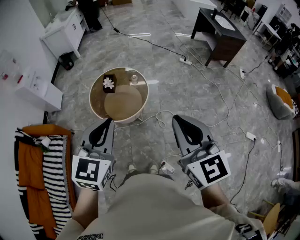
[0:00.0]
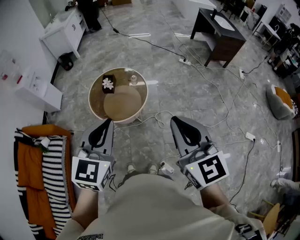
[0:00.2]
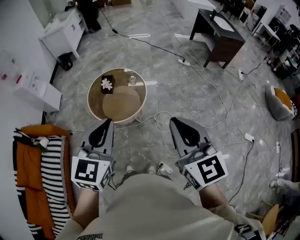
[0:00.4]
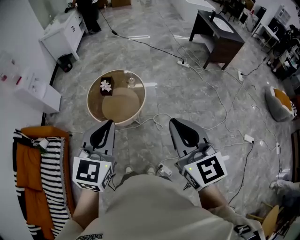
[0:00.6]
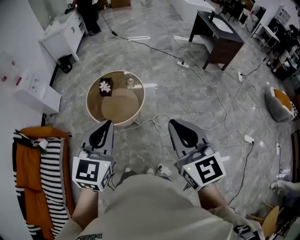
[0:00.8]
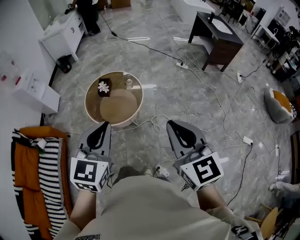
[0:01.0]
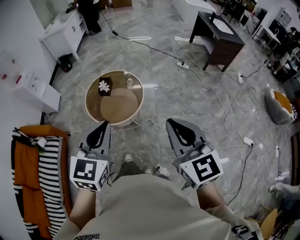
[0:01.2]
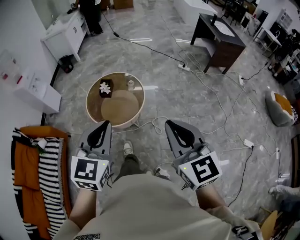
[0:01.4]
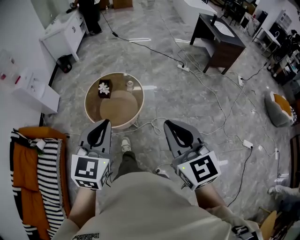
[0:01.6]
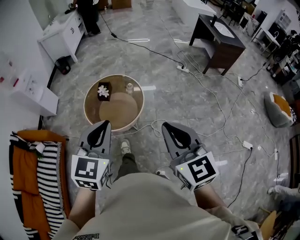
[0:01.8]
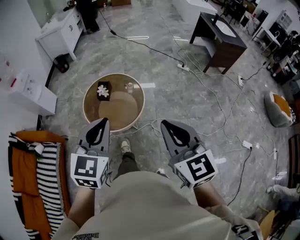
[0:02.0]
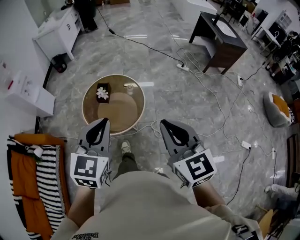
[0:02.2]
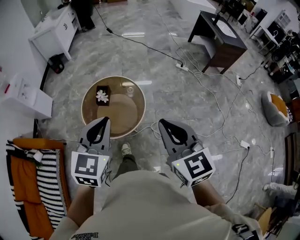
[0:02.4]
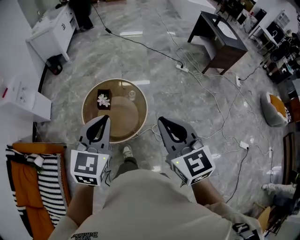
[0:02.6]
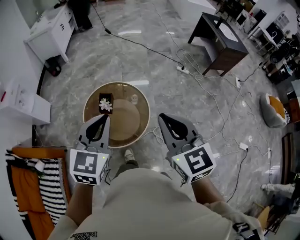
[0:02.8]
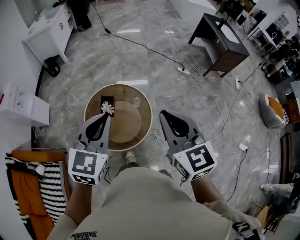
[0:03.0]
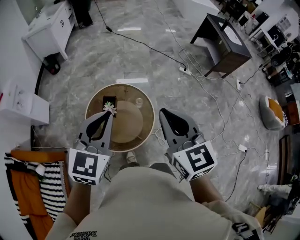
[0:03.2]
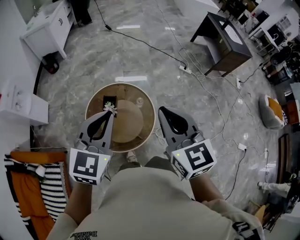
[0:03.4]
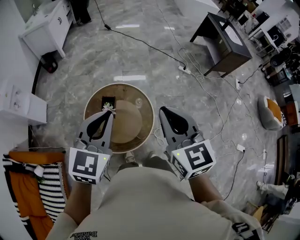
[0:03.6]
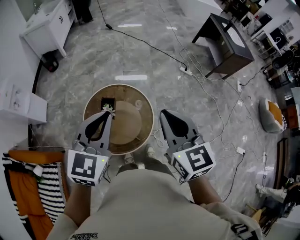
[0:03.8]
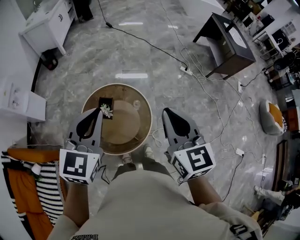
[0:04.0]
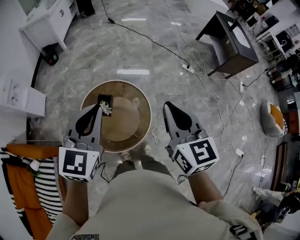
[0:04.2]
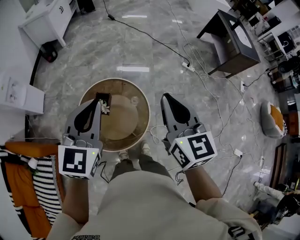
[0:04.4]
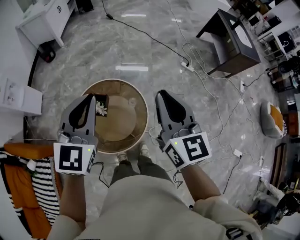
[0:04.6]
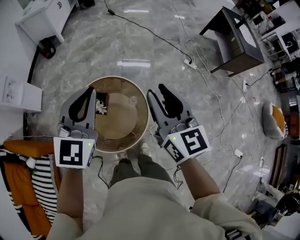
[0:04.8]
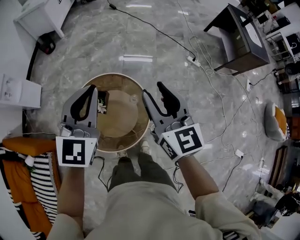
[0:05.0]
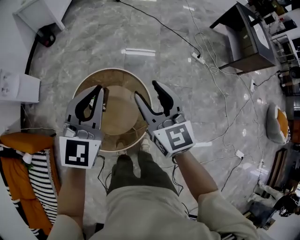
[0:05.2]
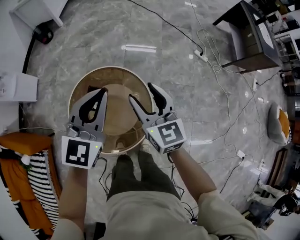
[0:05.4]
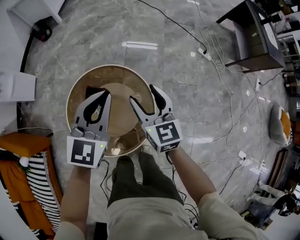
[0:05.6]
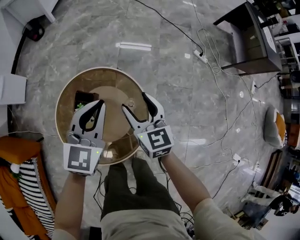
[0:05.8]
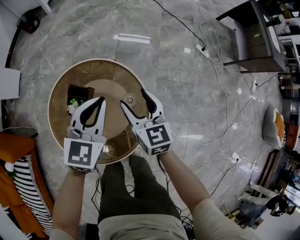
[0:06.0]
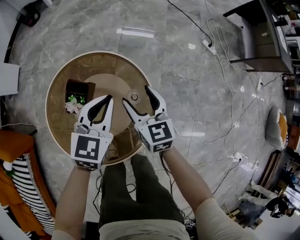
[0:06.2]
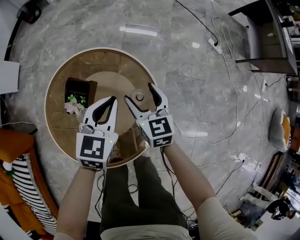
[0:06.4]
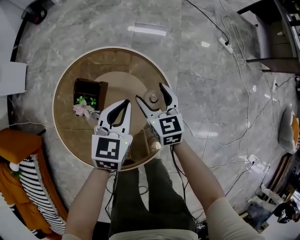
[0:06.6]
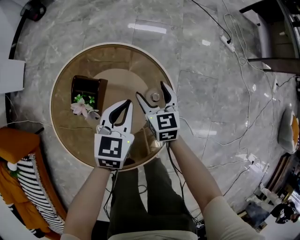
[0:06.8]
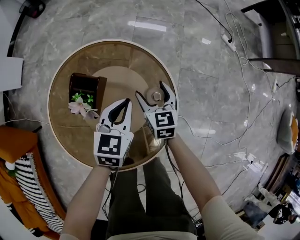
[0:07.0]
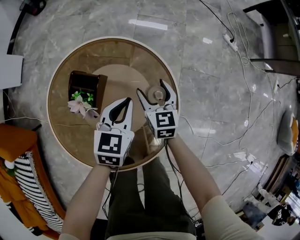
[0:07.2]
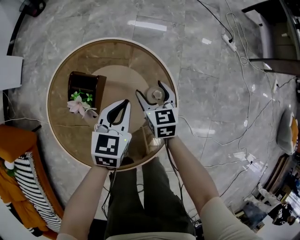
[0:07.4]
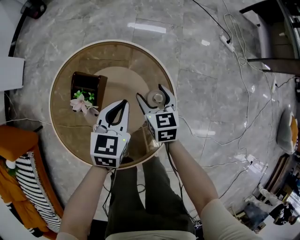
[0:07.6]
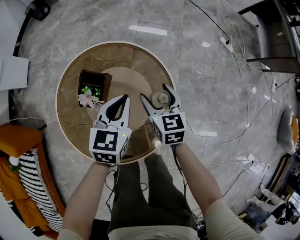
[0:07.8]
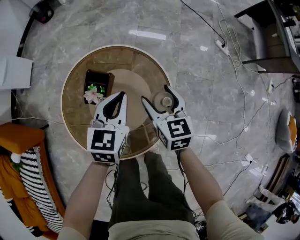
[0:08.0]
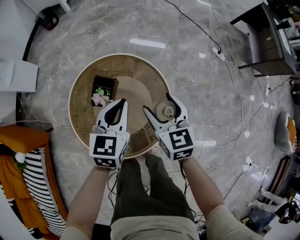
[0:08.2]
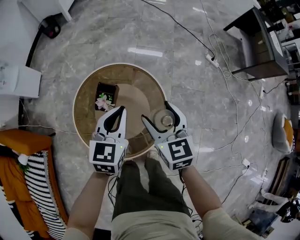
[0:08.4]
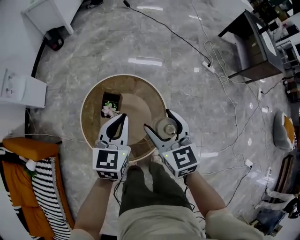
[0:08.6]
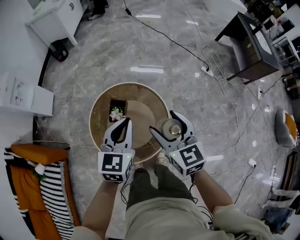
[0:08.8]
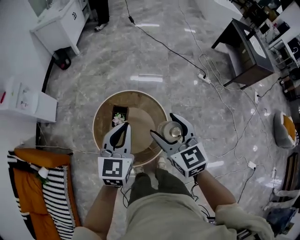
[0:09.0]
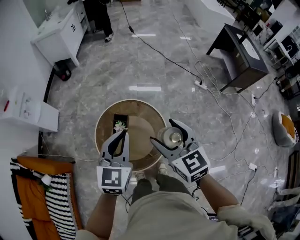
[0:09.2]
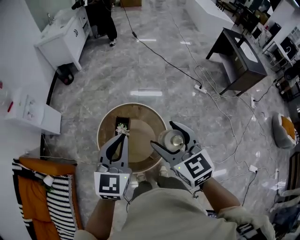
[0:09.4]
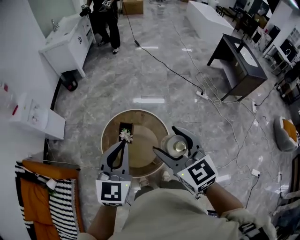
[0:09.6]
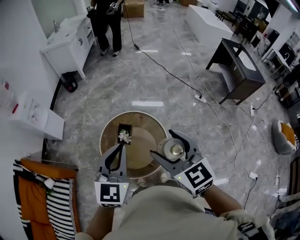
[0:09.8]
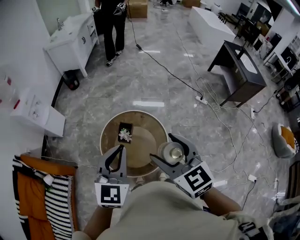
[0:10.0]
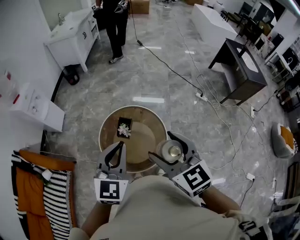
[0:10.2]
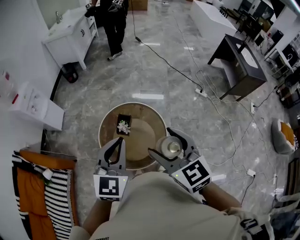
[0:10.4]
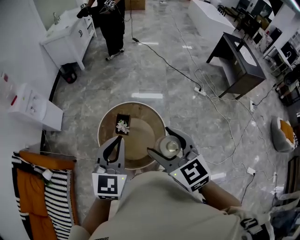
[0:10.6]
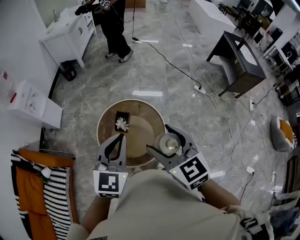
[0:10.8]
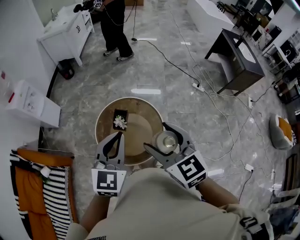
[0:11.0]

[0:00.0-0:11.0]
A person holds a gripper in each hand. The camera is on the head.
0:00.0 to 0:01.6: The grippers stay close to where they were, moving slightly.
0:01.6 to 0:03.2: The grippers both shift forward and to the left by roughly 40 cm.
0:03.2 to 0:04.8: The right gripper moves forward and downward, roughly 20 cm. The left gripper goes about 15 cm forward.
0:04.8 to 0:06.2: The two grippers go approximately 40 cm downward. The left gripper turns by some 30 degrees; the right gripper changes its angle by some 20 degrees, and opens its fingers.
0:06.2 to 0:07.8: Both grippers move downward, some 10 cm.
0:07.8 to 0:09.4: Both grippers move upward, some 50 cm. The right gripper swivels about 20 degrees; the left gripper turns by roughly 20 degrees.
0:09.4 to 0:11.0: The grippers both shift backward by roughly 5 cm.

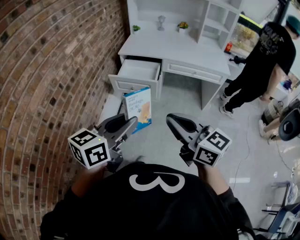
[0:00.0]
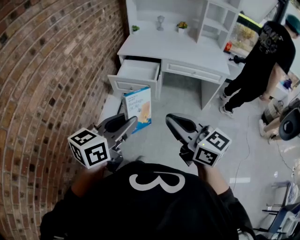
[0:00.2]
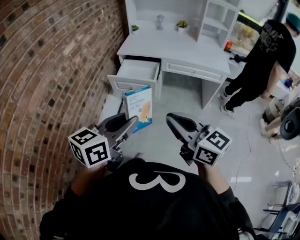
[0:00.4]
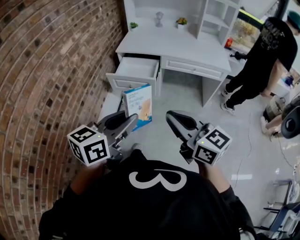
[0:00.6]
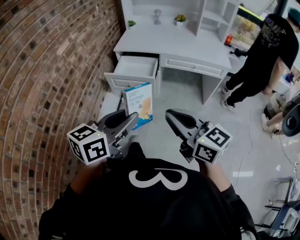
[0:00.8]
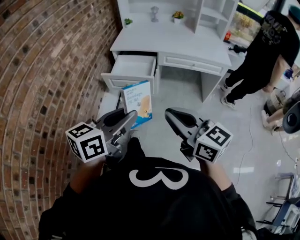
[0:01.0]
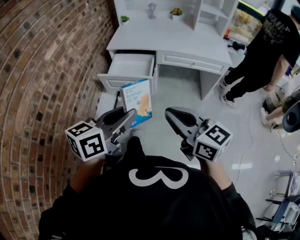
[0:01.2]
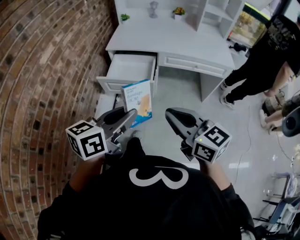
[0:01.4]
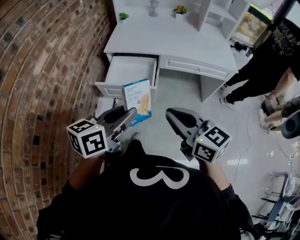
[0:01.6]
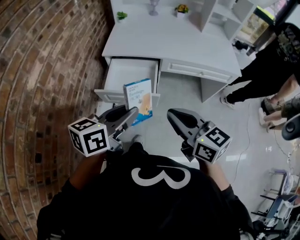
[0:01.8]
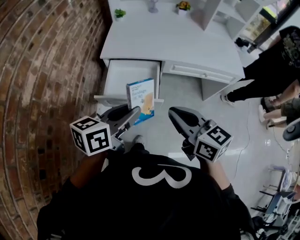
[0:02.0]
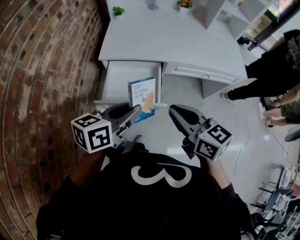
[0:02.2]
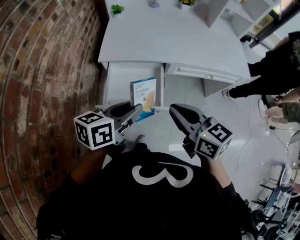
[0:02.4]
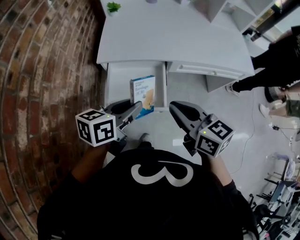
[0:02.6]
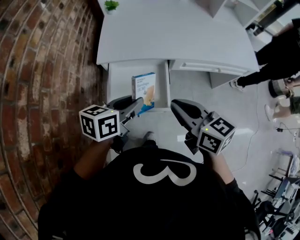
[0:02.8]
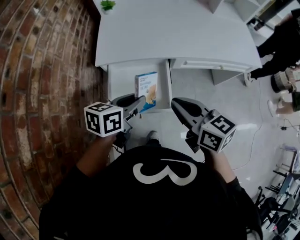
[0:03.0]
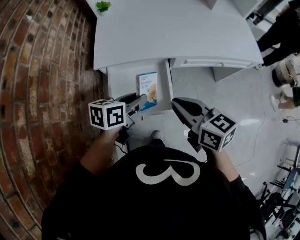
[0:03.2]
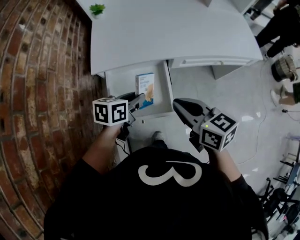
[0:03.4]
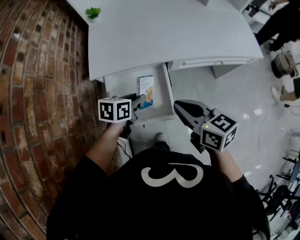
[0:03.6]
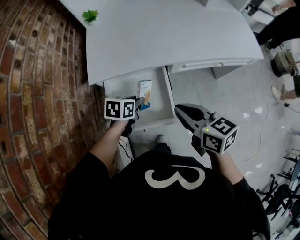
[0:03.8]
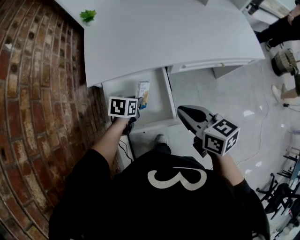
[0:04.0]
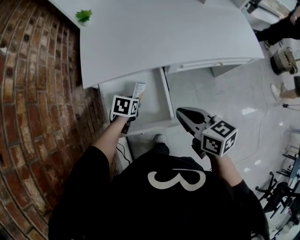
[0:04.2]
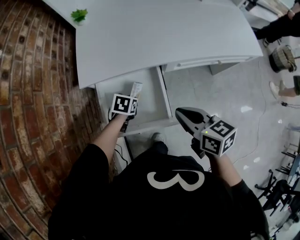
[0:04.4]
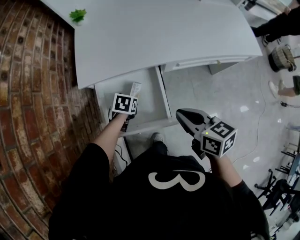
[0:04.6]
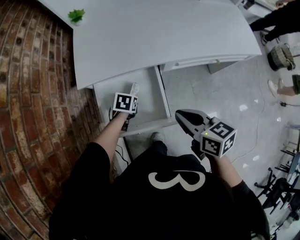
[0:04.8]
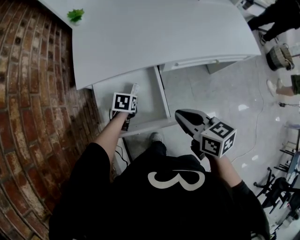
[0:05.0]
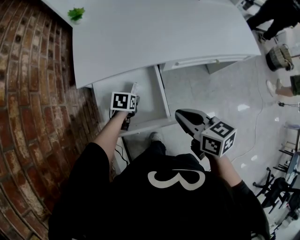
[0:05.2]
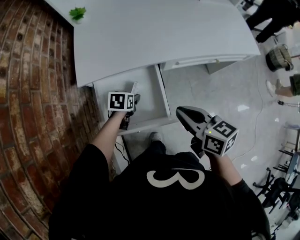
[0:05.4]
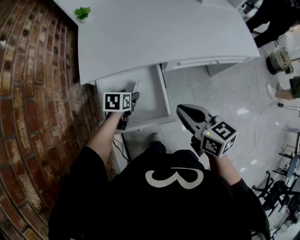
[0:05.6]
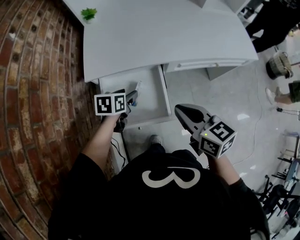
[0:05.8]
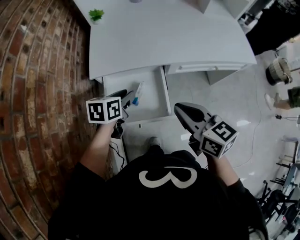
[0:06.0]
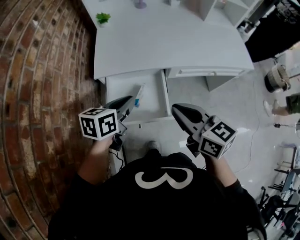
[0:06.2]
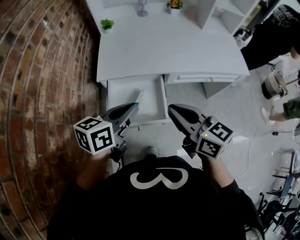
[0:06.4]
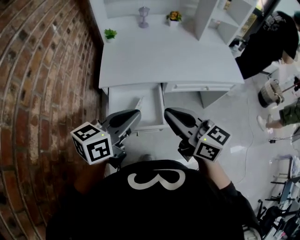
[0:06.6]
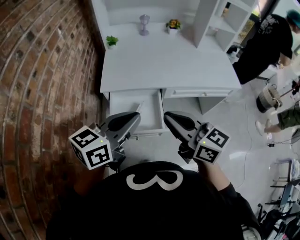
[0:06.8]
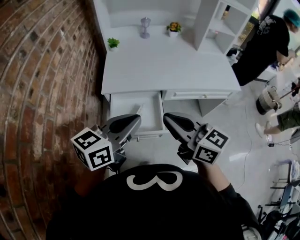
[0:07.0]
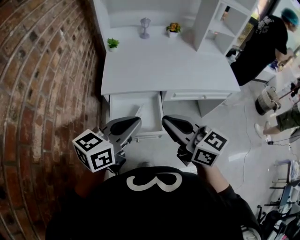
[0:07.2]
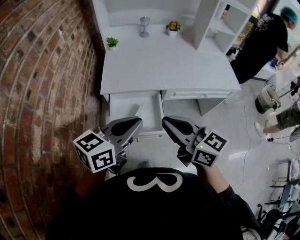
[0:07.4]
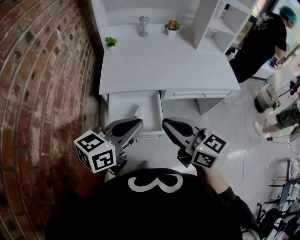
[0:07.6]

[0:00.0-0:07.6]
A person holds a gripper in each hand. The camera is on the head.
0:00.0 to 0:01.6: The two grippers go about 20 cm forward.
0:01.6 to 0:03.0: The right gripper moves forward, about 25 cm. The left gripper moves forward and downward, approximately 30 cm, and turns by approximately 20 degrees.
0:03.0 to 0:04.6: The right gripper is displaced downward by about 10 cm; the left gripper moves downward, roughly 25 cm, and points its fingers about 40 degrees further downward.
0:04.6 to 0:06.0: The left gripper goes some 20 cm upward, swivels some 30 degrees, and opens, then closes again, while the right gripper is displaced upward by approximately 10 cm.
0:06.0 to 0:07.6: The left gripper moves upward and backward, roughly 25 cm, points its fingers some 30 degrees further upward, and closes; the right gripper is displaced upward and backward by approximately 10 cm.

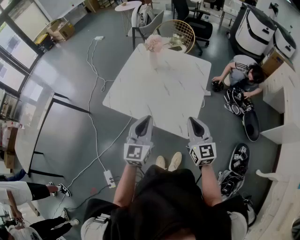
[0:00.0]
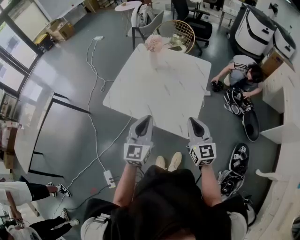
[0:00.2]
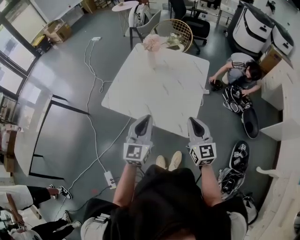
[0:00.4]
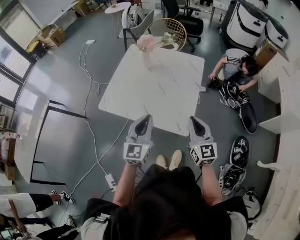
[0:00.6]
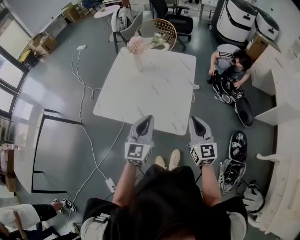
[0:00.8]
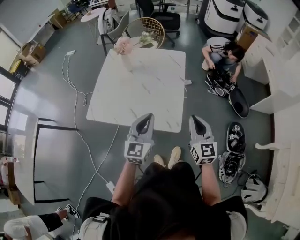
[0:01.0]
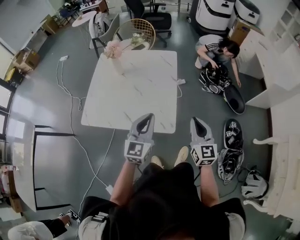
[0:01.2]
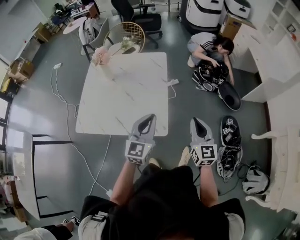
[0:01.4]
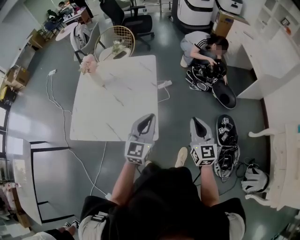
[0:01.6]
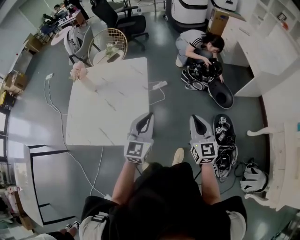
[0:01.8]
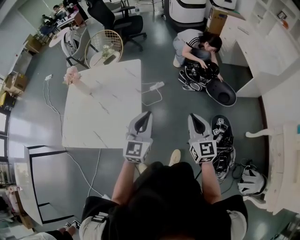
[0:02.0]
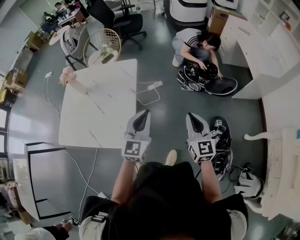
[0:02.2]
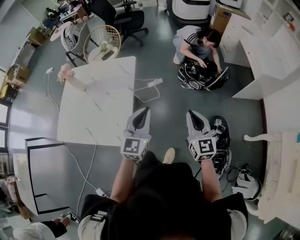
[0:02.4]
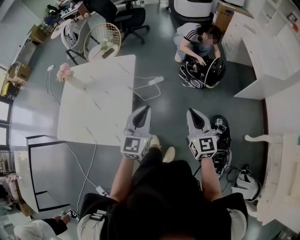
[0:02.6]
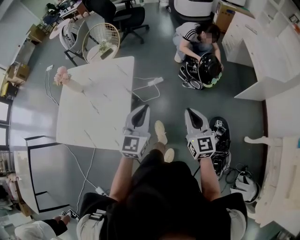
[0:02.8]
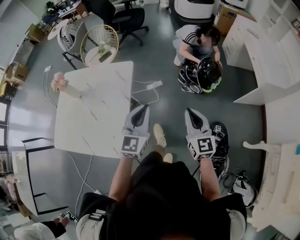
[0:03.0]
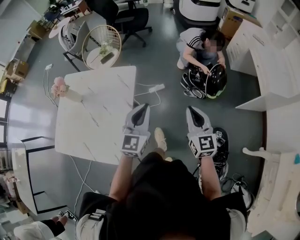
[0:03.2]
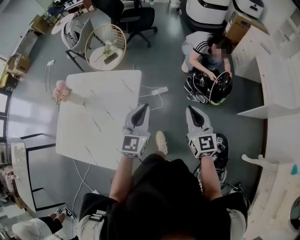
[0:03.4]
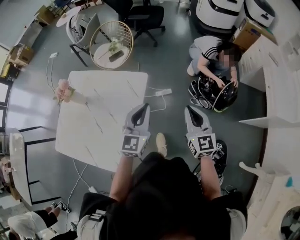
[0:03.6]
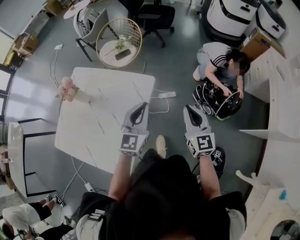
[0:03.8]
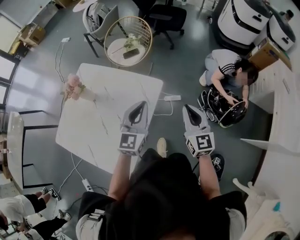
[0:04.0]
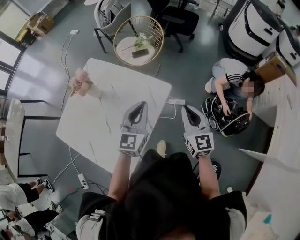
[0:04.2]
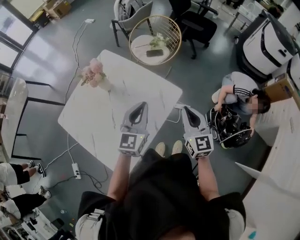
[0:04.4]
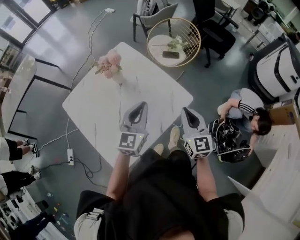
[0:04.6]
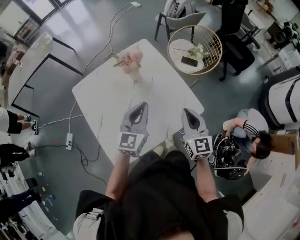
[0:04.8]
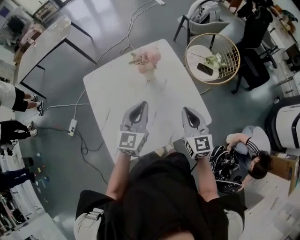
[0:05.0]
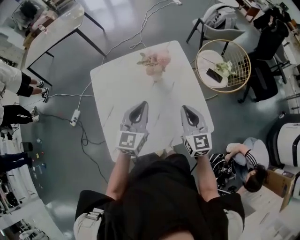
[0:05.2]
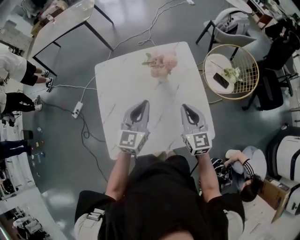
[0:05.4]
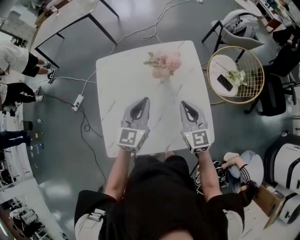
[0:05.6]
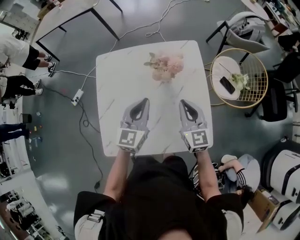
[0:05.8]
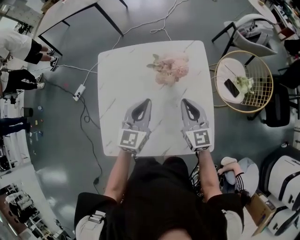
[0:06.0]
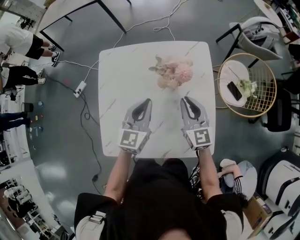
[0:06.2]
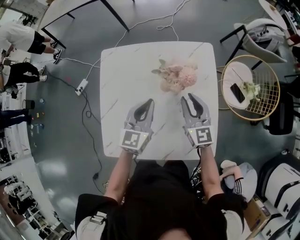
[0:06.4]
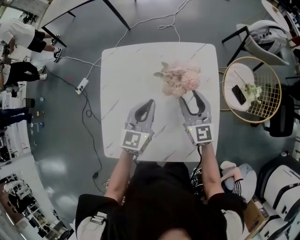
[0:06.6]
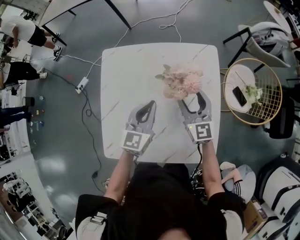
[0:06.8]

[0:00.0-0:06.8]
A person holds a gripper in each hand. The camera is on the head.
0:00.0 to 0:01.4: The left gripper shifts by about 15 cm, and turns by roughly 30 degrees. The right gripper moves about 15 cm, and swivels roughly 30 degrees.
0:01.4 to 0:02.8: Both grippers travel together to the right and forward, about 30 cm.
0:02.8 to 0:04.0: The grippers both shift forward and to the left by about 35 cm.
0:04.0 to 0:05.4: The right gripper ends up roughly 35 cm from where it was, and changes its angle by roughly 60 degrees, while the left gripper ends up some 30 cm from where it was, and changes its angle by approximately 60 degrees.
0:05.4 to 0:06.8: The left gripper shifts some 15 cm forward and downward; the right gripper goes roughly 20 cm forward, and opens.
